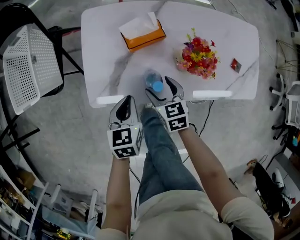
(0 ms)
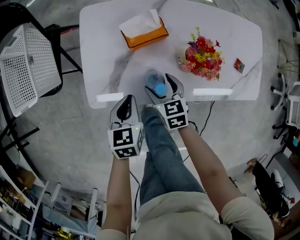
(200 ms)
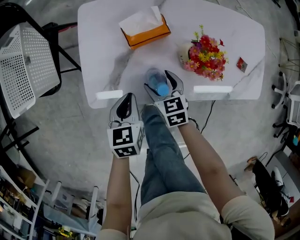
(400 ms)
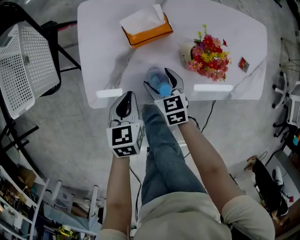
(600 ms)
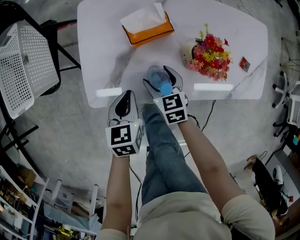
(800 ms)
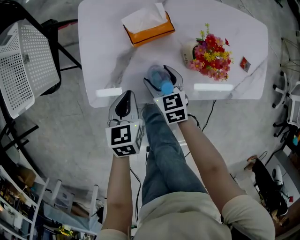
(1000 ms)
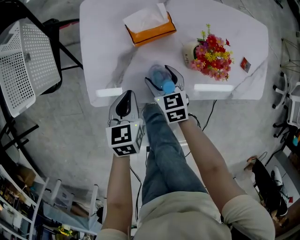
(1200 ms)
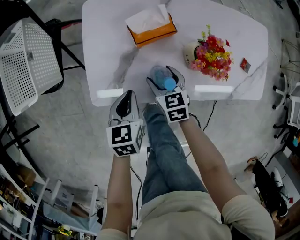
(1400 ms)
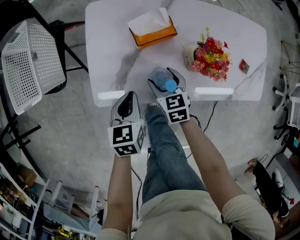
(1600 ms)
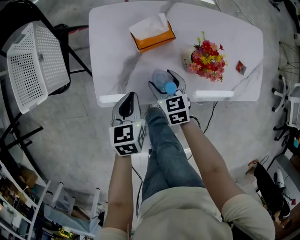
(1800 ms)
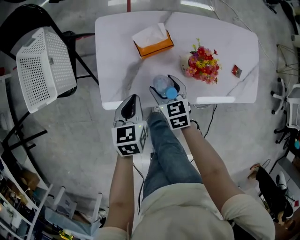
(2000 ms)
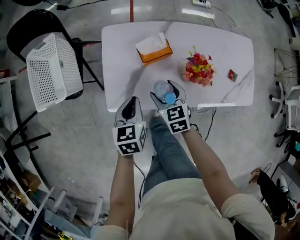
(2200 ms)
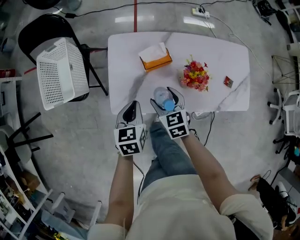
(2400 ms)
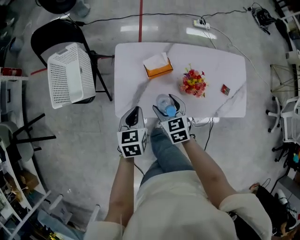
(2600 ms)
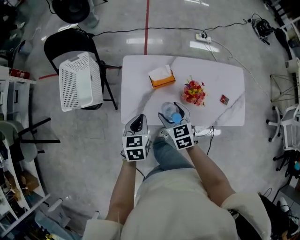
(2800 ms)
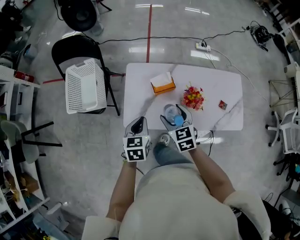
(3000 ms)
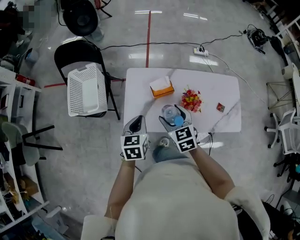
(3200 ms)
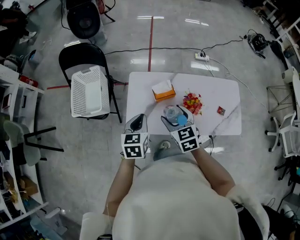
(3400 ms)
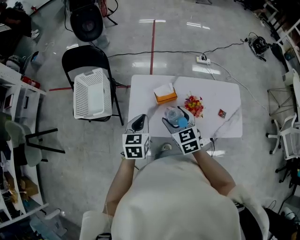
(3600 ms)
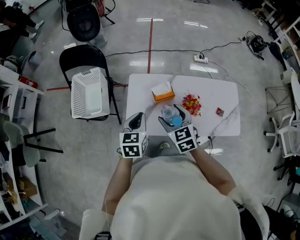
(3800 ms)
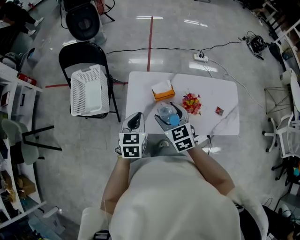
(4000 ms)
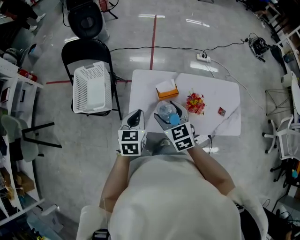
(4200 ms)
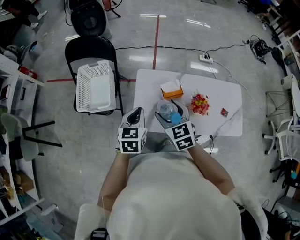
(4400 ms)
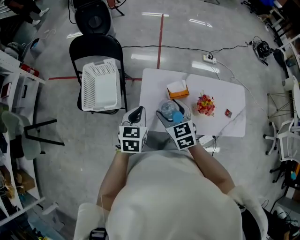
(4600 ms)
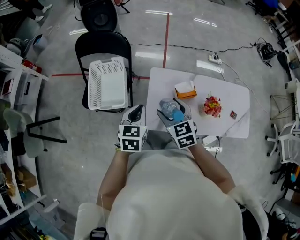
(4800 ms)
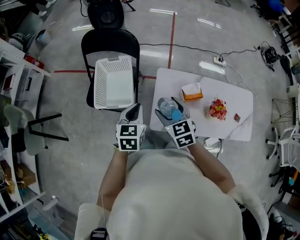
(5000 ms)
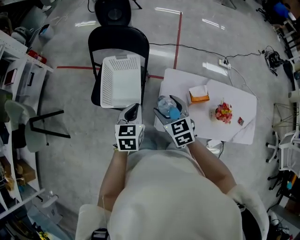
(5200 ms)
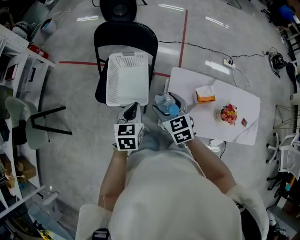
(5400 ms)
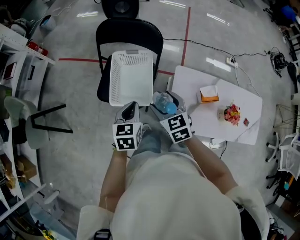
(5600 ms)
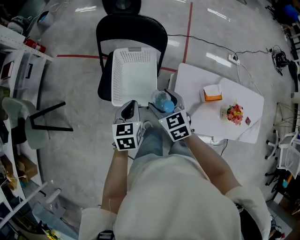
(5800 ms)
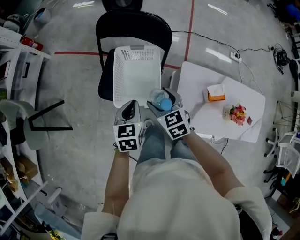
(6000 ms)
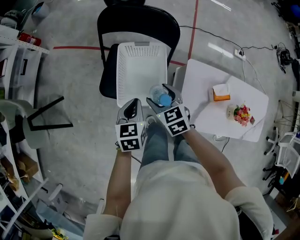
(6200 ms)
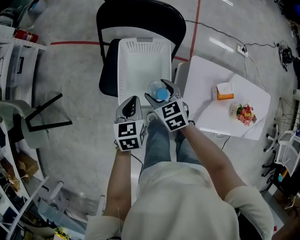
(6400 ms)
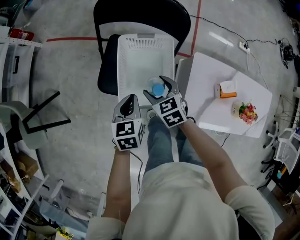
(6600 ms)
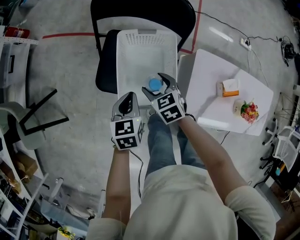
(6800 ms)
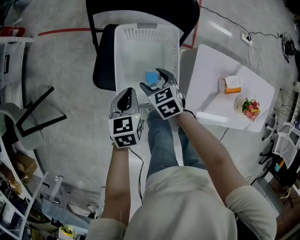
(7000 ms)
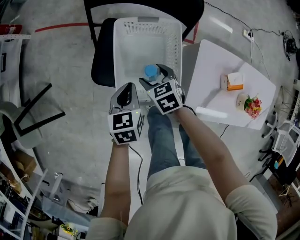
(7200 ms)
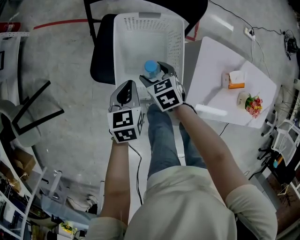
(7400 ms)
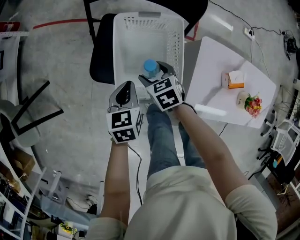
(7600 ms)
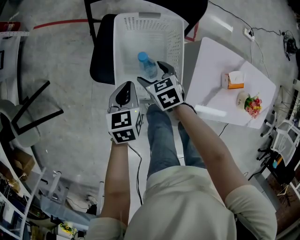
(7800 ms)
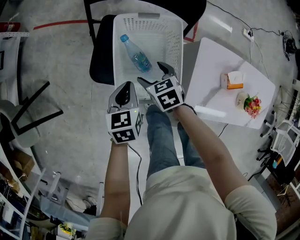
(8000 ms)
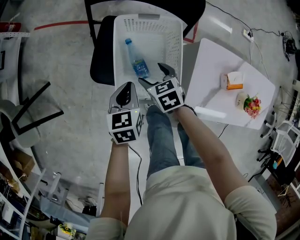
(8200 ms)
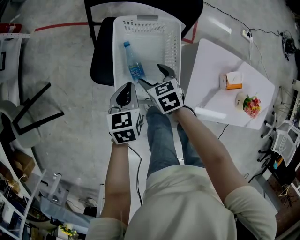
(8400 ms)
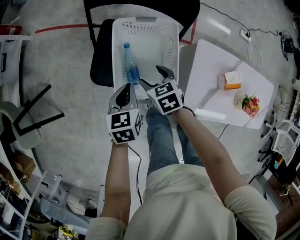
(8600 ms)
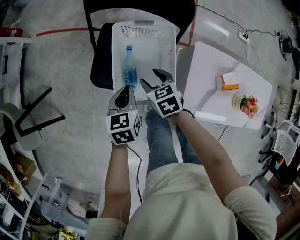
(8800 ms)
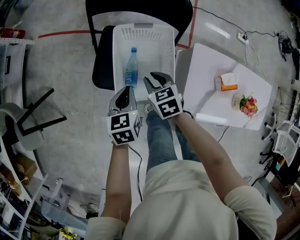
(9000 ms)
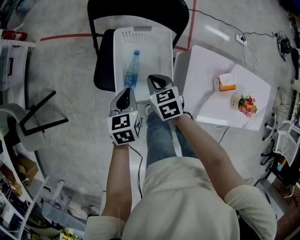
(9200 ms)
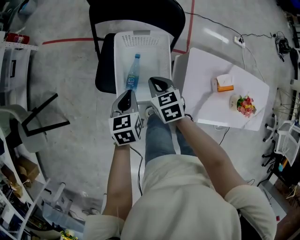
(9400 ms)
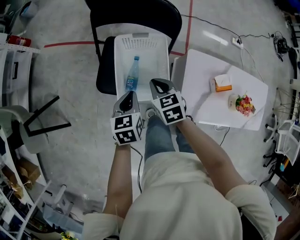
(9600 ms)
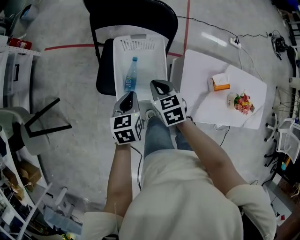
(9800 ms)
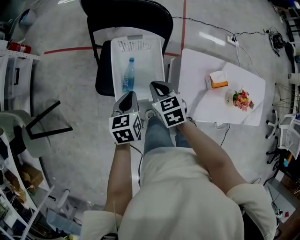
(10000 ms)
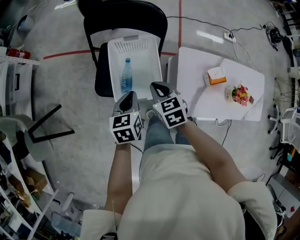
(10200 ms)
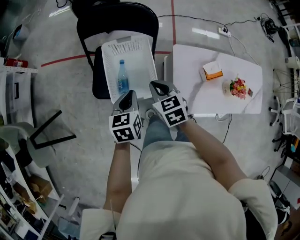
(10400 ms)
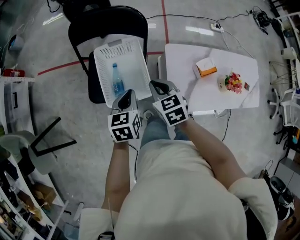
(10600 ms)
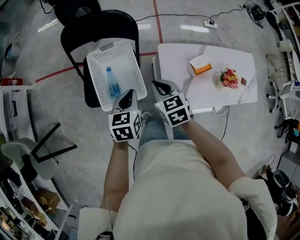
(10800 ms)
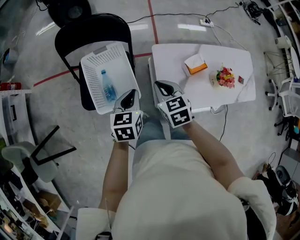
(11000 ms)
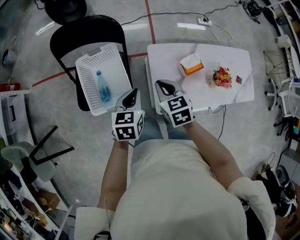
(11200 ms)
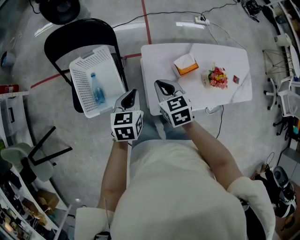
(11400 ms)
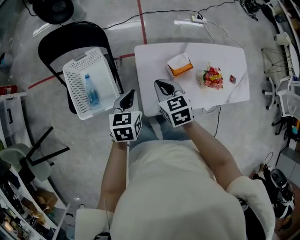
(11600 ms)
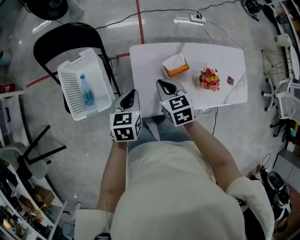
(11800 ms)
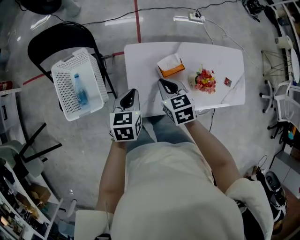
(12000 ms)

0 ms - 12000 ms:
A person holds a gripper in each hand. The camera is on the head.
0 ms - 1600 ms: There are only small adjustments of the grippers.
1600 ms - 3000 ms: Both grippers travel together upward, about 25 cm.
3000 ms - 4400 ms: Both grippers move to the left and upward, about 10 cm.
4400 ms - 6000 ms: Both grippers travel together to the left and forward, roughly 35 cm.
6000 ms - 7600 ms: The right gripper goes approximately 20 cm downward and forward, and changes its angle by roughly 20 degrees; the left gripper is displaced downward, forward and to the left by roughly 15 cm.
7600 ms - 9000 ms: The right gripper goes some 5 cm upward, and closes.
9000 ms - 10400 ms: The left gripper shifts about 10 cm upward and to the right. The right gripper travels upward, backward and to the right by approximately 15 cm.
10400 ms - 12000 ms: Both grippers move to the right, approximately 30 cm.

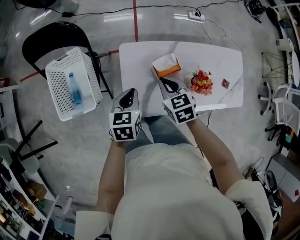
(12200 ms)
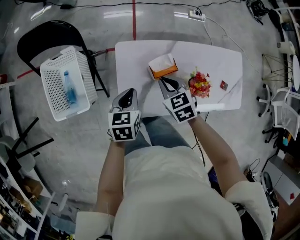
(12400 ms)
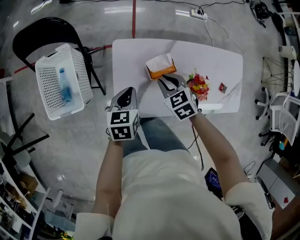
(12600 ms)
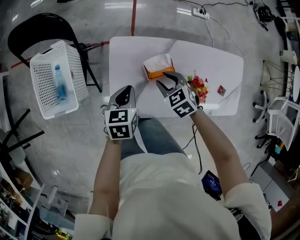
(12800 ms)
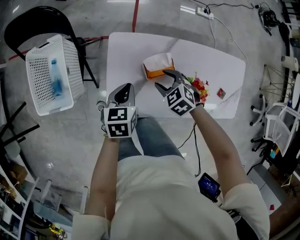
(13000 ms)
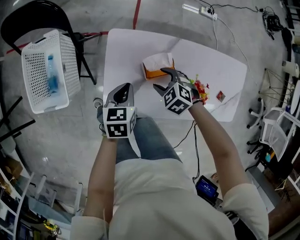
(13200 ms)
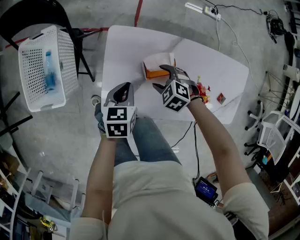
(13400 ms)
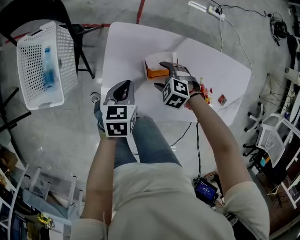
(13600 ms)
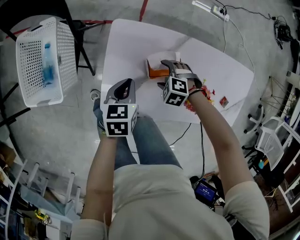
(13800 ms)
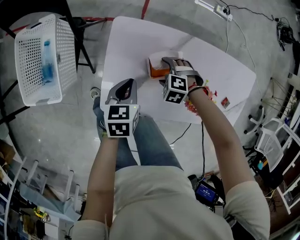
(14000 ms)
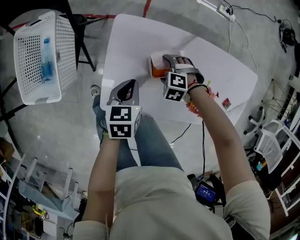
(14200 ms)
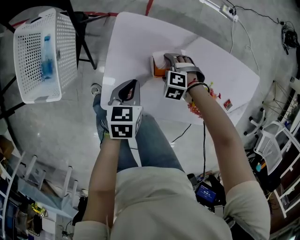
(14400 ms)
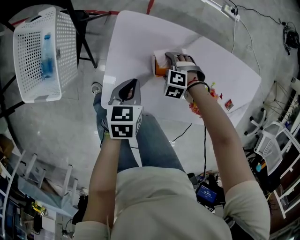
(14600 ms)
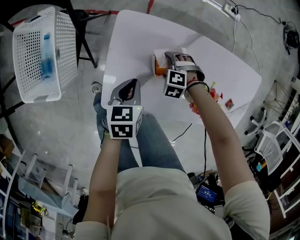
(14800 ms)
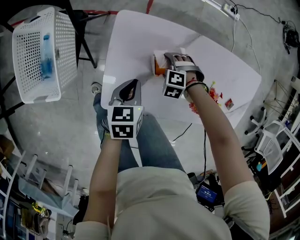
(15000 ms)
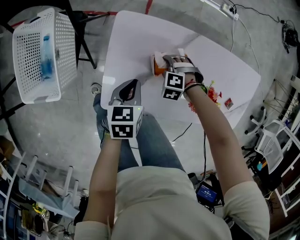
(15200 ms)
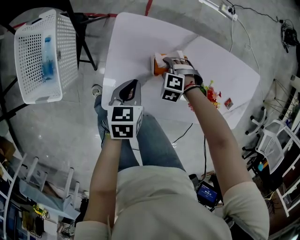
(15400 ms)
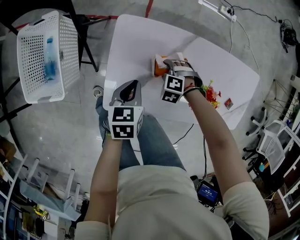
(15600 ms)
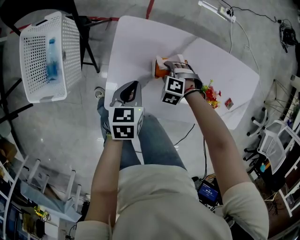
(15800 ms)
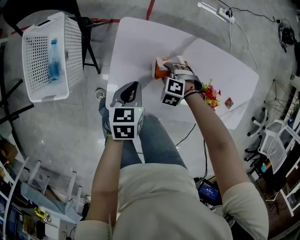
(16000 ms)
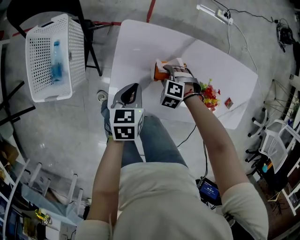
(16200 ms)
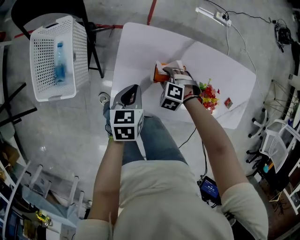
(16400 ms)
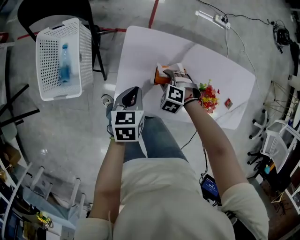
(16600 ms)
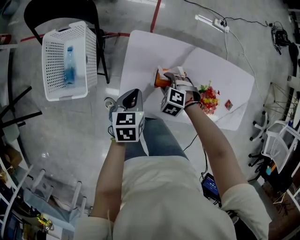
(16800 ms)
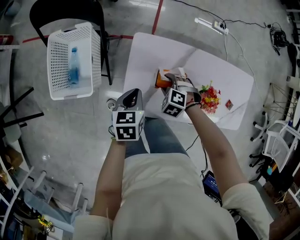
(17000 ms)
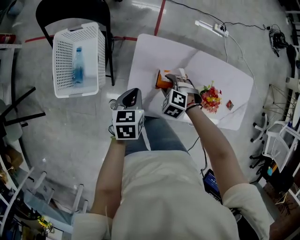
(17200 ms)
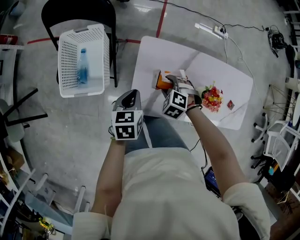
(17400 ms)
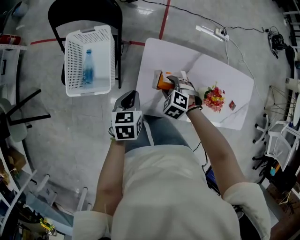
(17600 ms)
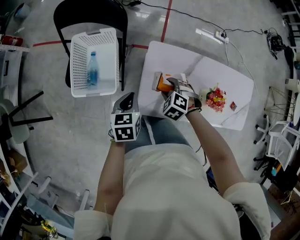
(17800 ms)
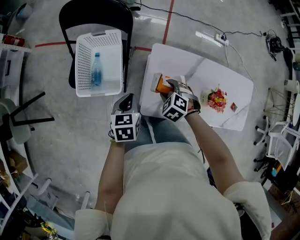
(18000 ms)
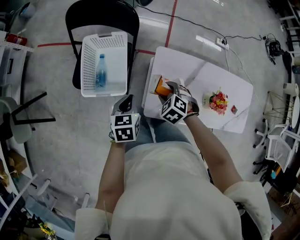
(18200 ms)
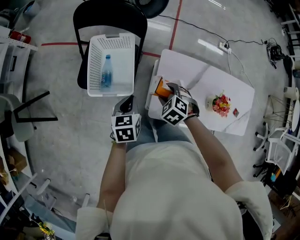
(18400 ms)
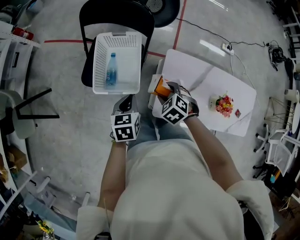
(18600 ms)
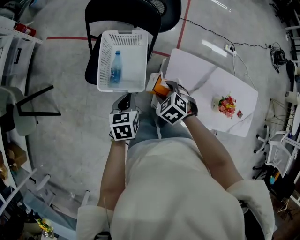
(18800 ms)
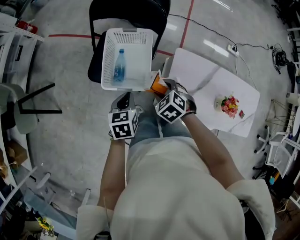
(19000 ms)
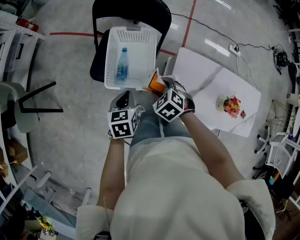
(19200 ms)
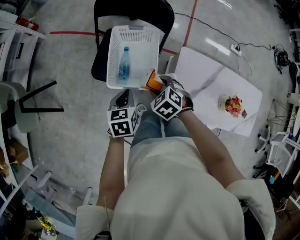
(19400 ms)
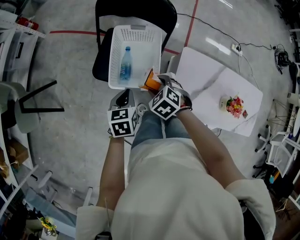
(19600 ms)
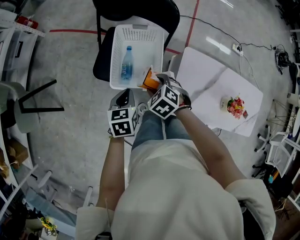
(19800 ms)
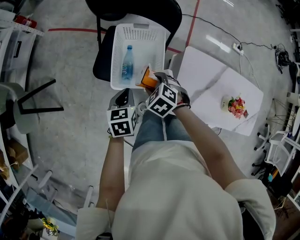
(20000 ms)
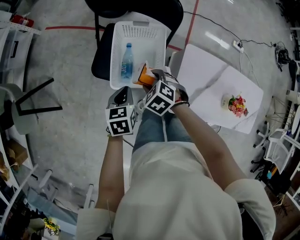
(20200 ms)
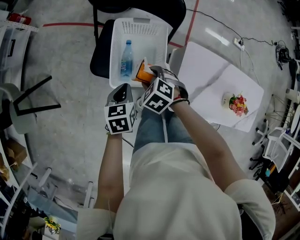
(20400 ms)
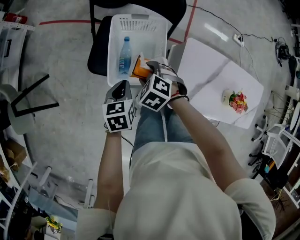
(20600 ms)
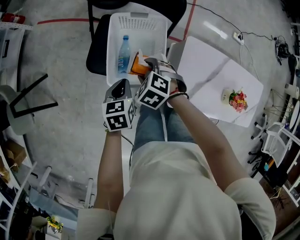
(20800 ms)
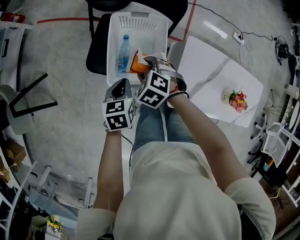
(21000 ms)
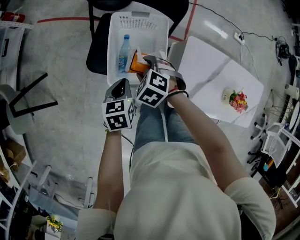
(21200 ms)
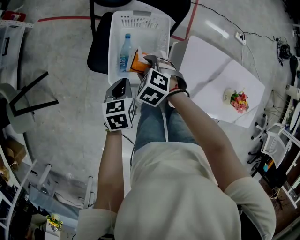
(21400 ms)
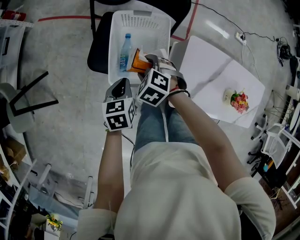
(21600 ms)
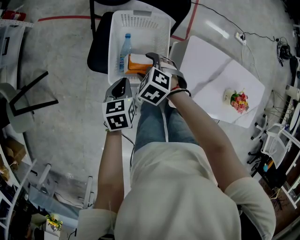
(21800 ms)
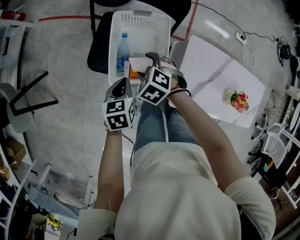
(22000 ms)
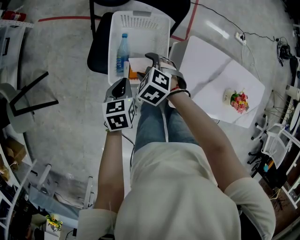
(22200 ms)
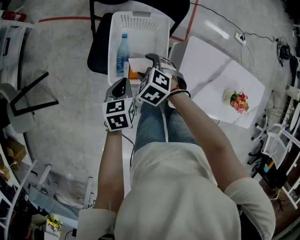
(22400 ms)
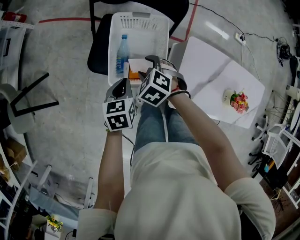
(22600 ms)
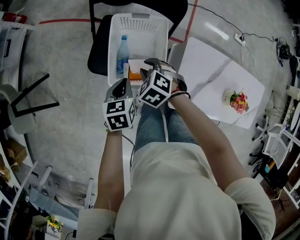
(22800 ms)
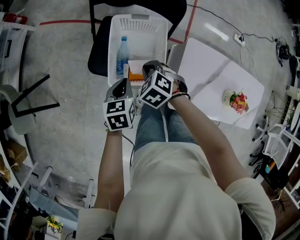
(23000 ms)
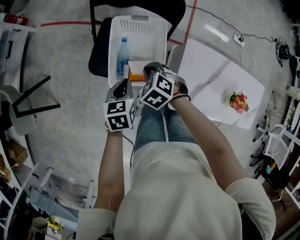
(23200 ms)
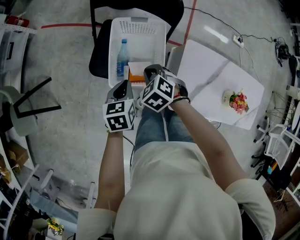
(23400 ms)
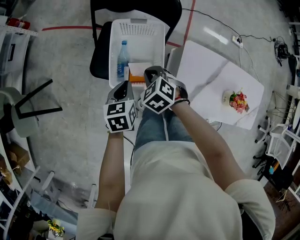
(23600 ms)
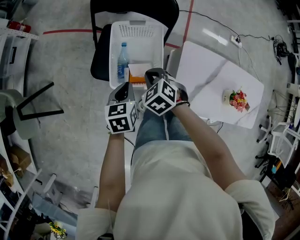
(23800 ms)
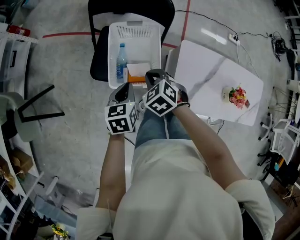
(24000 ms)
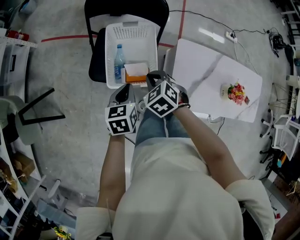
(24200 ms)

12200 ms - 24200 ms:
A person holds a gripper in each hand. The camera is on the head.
12200 ms - 13800 ms: The right gripper is displaced downward by some 25 cm, twists about 60 degrees counterclockwise, seen from behind, and opens its fingers. Meanwhile the left gripper moves downward, roughly 15 cm.
13800 ms - 15200 ms: The right gripper goes some 5 cm downward.
15200 ms - 16600 ms: The two grippers go roughly 10 cm upward.
16600 ms - 18200 ms: The left gripper moves about 25 cm. The right gripper ends up about 25 cm from where it was.
18200 ms - 19800 ms: Both grippers move to the left, approximately 20 cm.
19800 ms - 21200 ms: The right gripper is displaced forward by some 5 cm. The left gripper ends up roughly 5 cm from where it was.
21200 ms - 22600 ms: The two grippers keep their place.
22600 ms - 24200 ms: The right gripper heads backward and upward, covering some 10 cm, and closes up; the left gripper heads upward, covering approximately 5 cm.
